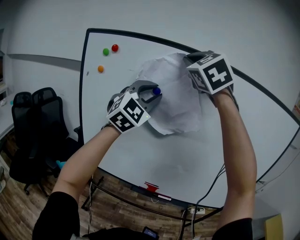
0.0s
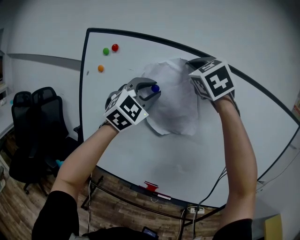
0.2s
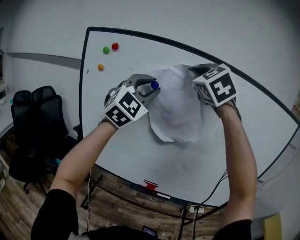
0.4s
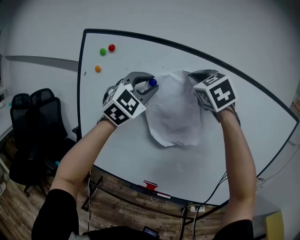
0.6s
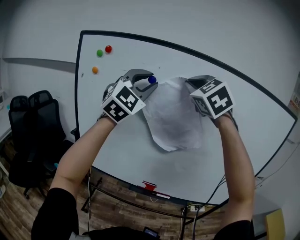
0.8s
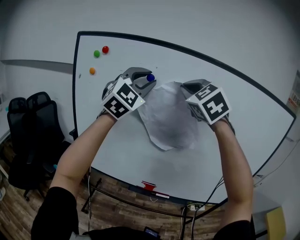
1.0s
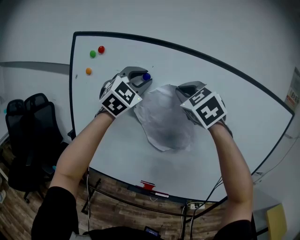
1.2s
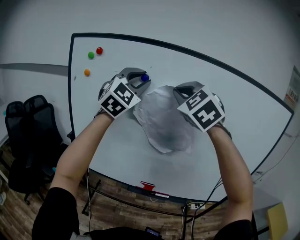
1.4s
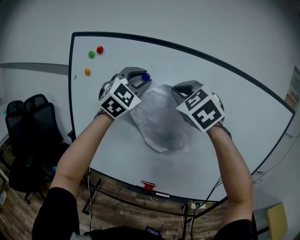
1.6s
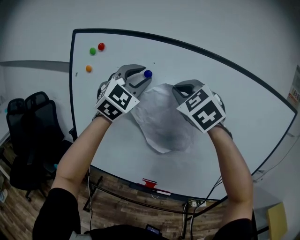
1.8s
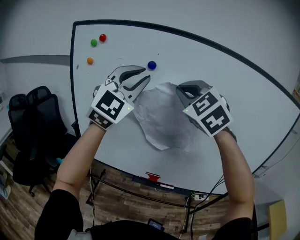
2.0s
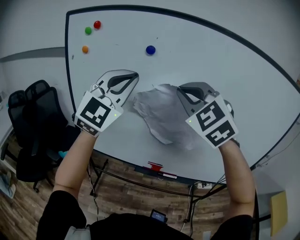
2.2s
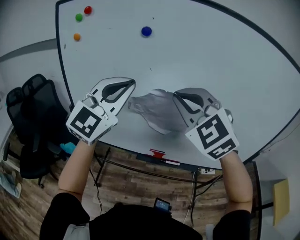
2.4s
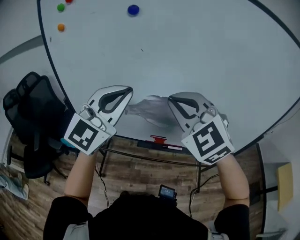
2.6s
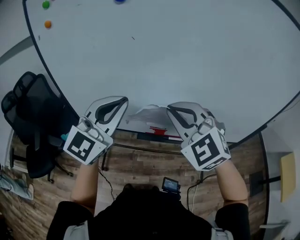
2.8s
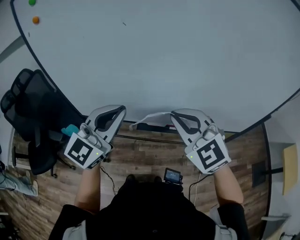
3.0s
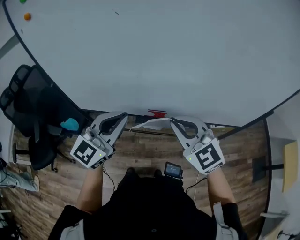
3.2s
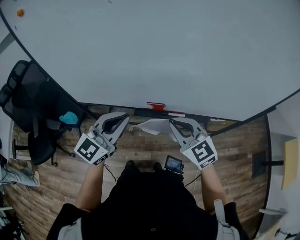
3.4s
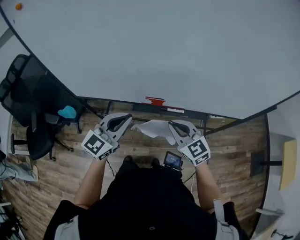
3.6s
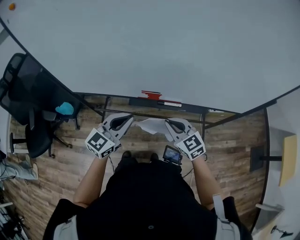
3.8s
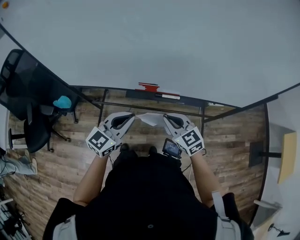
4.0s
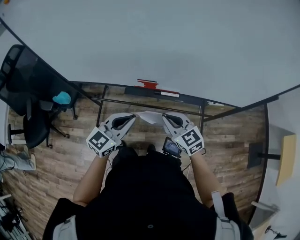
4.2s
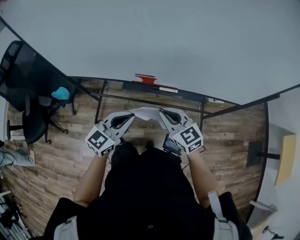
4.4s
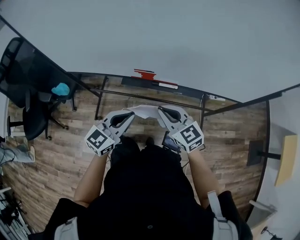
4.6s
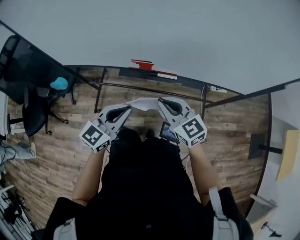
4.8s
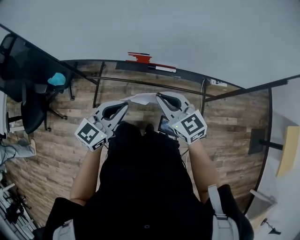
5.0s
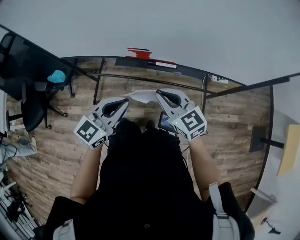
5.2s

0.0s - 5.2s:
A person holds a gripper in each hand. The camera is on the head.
0.0s - 1.8s: The right gripper moves downward, roughly 10 cm.
1.8s - 3.4s: The two grippers go about 40 cm downward. The right gripper rolls clockwise, seen from behind, by approximately 40 degrees; the left gripper rolls counterclockwise, seen from behind, by roughly 50 degrees, and closes up.
3.4s - 5.2s: The right gripper is displaced downward and to the right by roughly 15 cm; the left gripper goes some 20 cm downward, to the right and backward.

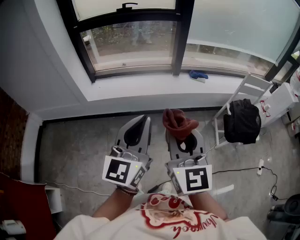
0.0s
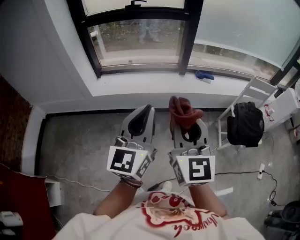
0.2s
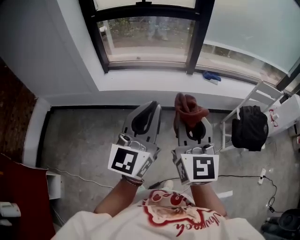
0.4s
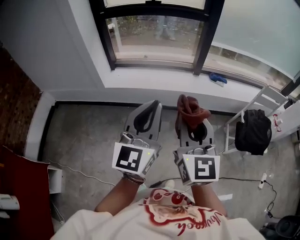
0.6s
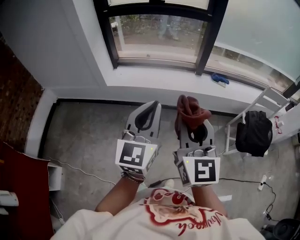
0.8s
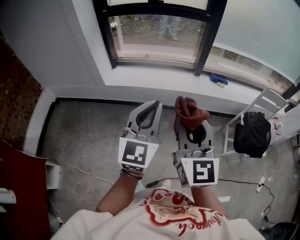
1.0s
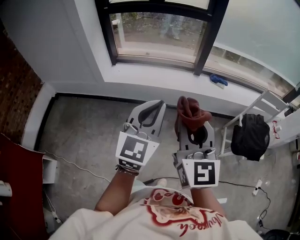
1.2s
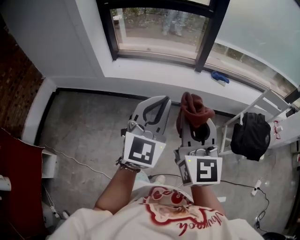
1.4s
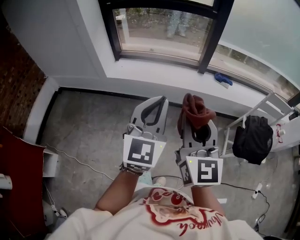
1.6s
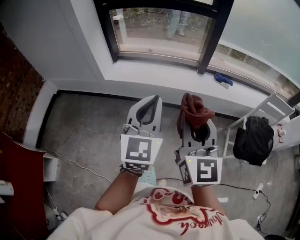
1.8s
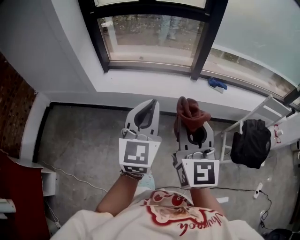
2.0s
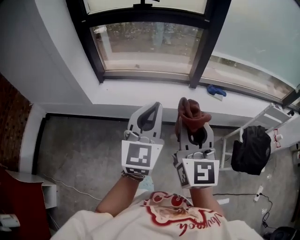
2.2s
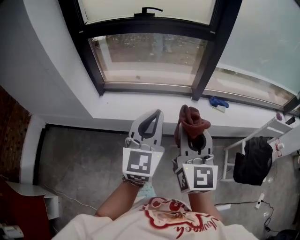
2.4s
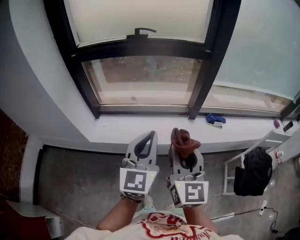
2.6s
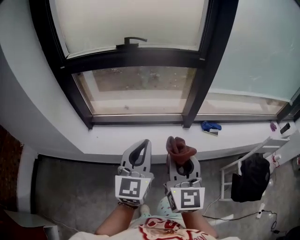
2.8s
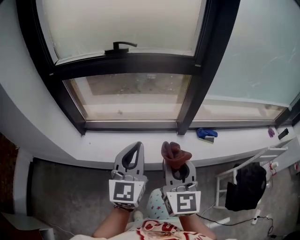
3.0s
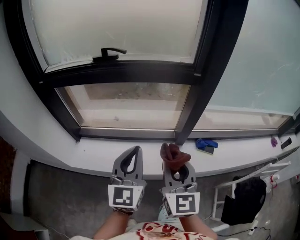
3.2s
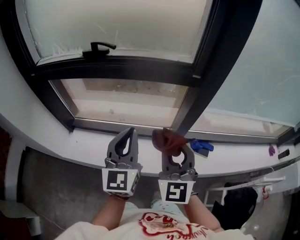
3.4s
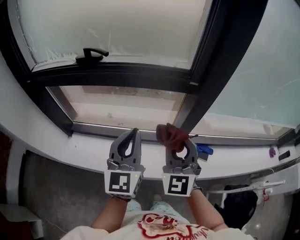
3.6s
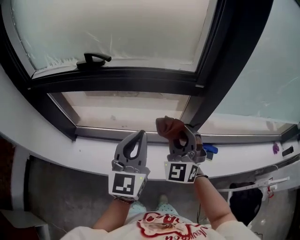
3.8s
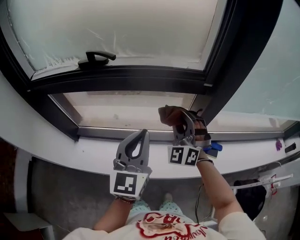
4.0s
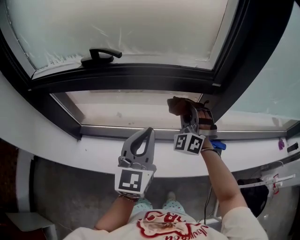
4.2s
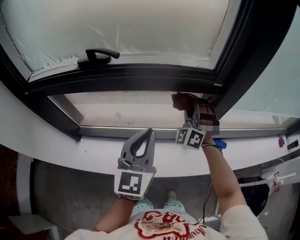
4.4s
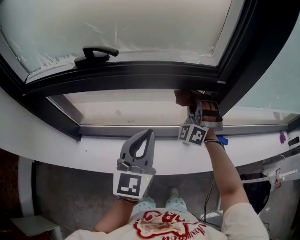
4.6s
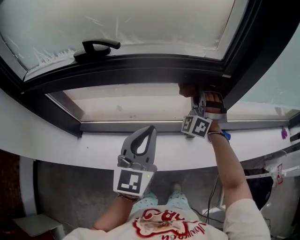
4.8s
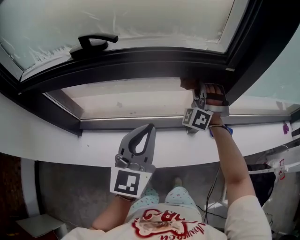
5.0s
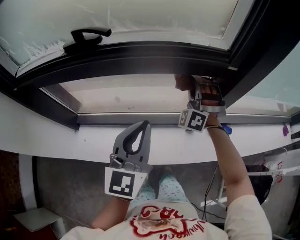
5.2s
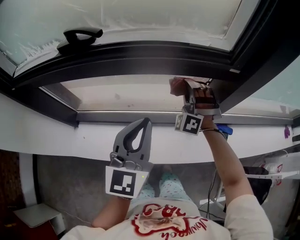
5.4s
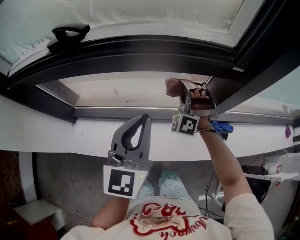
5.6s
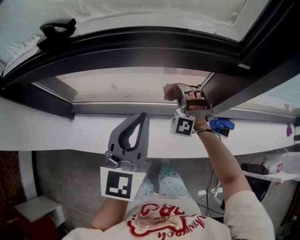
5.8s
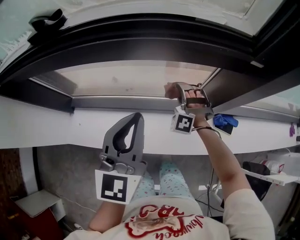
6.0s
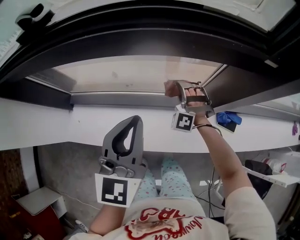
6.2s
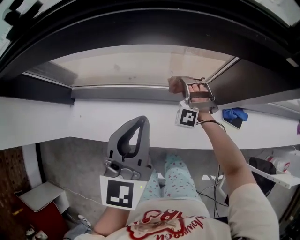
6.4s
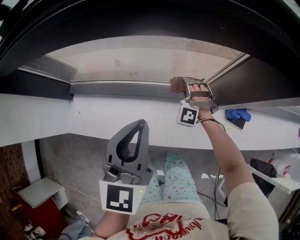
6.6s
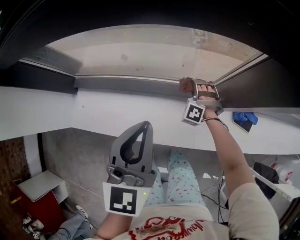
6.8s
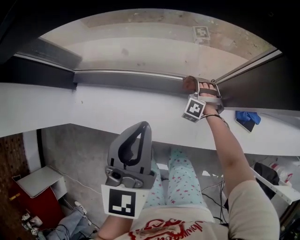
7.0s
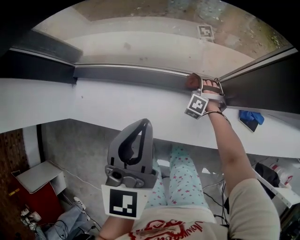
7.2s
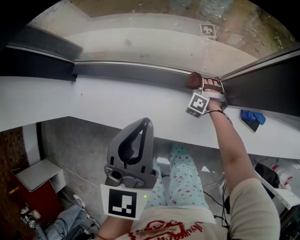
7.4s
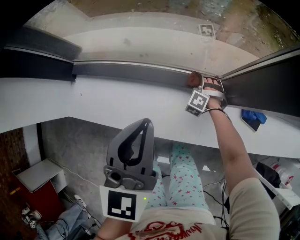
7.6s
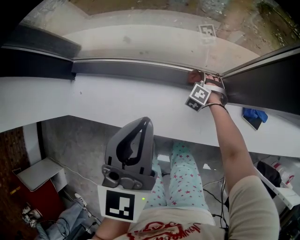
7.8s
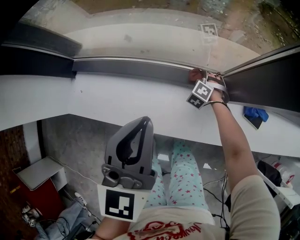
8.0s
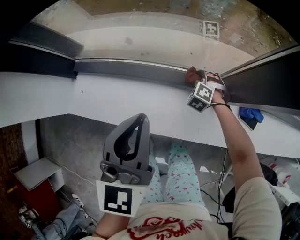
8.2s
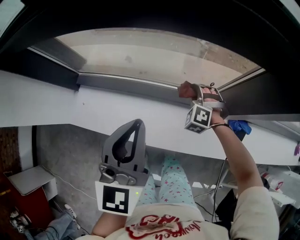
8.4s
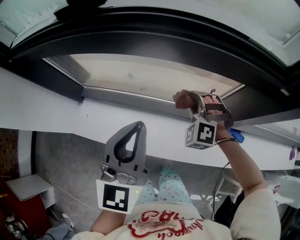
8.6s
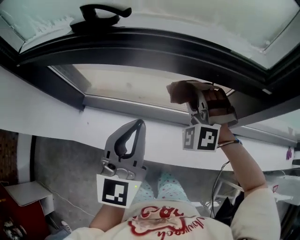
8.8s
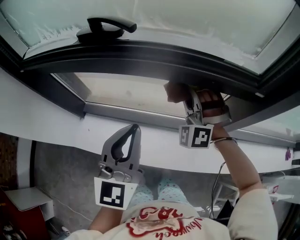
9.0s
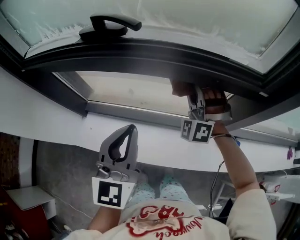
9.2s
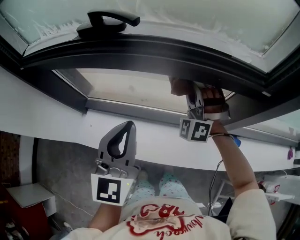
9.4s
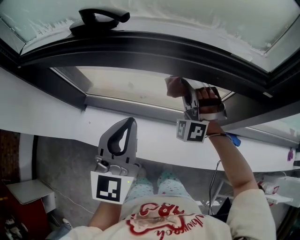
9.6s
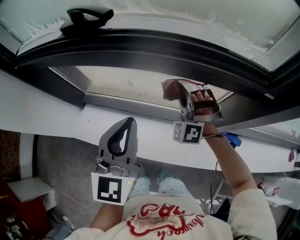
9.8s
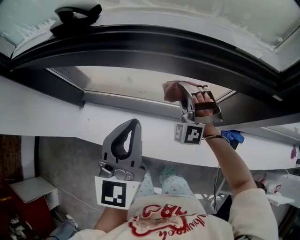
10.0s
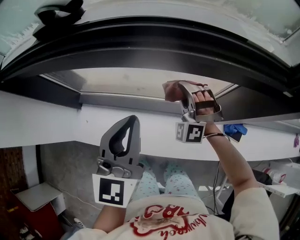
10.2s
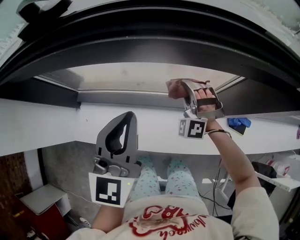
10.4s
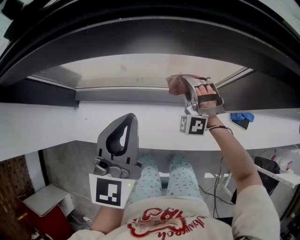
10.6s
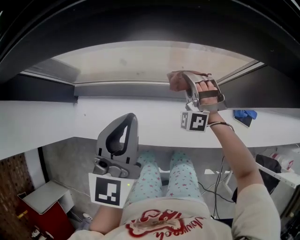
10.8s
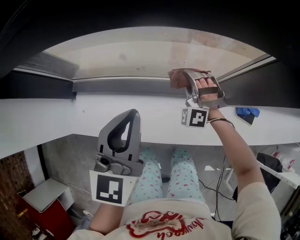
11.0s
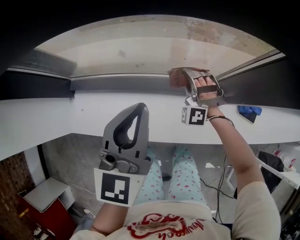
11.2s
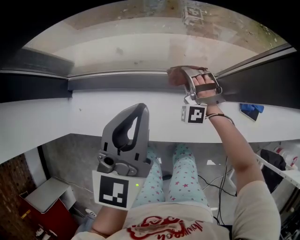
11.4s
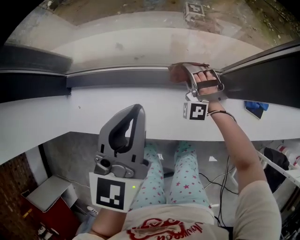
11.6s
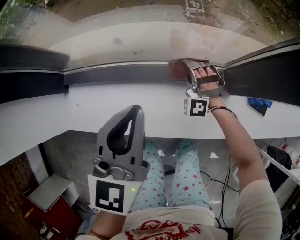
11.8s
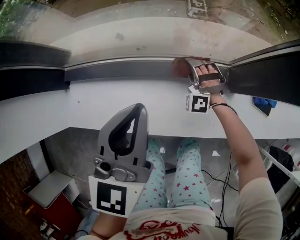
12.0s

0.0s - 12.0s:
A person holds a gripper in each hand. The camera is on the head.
0.0s - 1.6s: The left gripper shifts by some 5 cm, and rotates approximately 20 degrees.
1.6s - 3.0s: The two grippers travel together, forward, some 40 cm.
3.0s - 4.4s: The left gripper heads forward, covering roughly 25 cm. Meanwhile the right gripper shifts roughly 40 cm forward, and rotates around the line of its fingers by roughly 70 degrees, counterclockwise from behind.
4.4s - 6.0s: The left gripper heads downward, covering roughly 5 cm; the right gripper moves downward, some 25 cm, and rotates roughly 20 degrees.
6.0s - 7.6s: The left gripper moves downward, some 15 cm; the right gripper travels downward by roughly 30 cm, and turns by roughly 20 degrees.
7.6s - 9.0s: The left gripper travels upward by some 20 cm, while the right gripper travels upward by about 50 cm, and tips its fingers upward by approximately 40 degrees.
9.0s - 10.4s: The left gripper shifts roughly 10 cm downward and forward, while the right gripper is displaced downward by about 20 cm.
10.4s - 12.0s: The left gripper travels downward by some 15 cm, while the right gripper moves downward, roughly 25 cm.

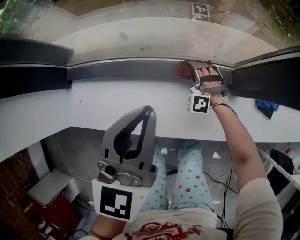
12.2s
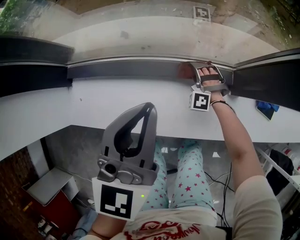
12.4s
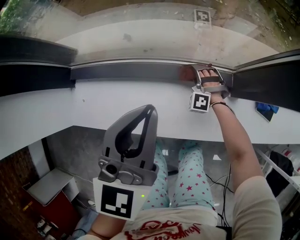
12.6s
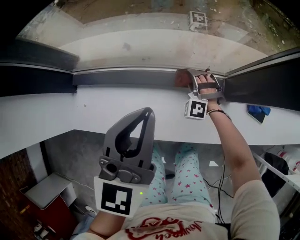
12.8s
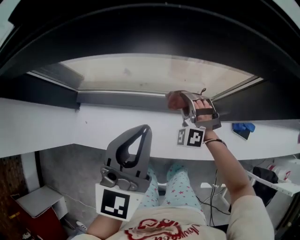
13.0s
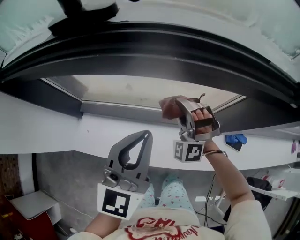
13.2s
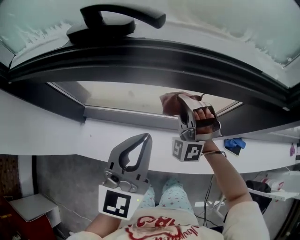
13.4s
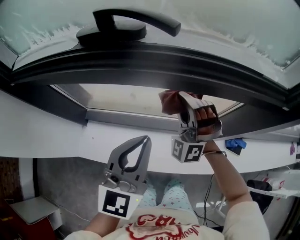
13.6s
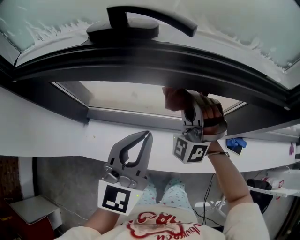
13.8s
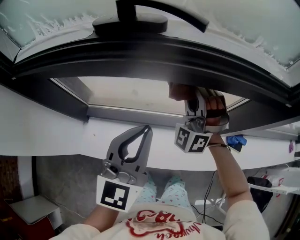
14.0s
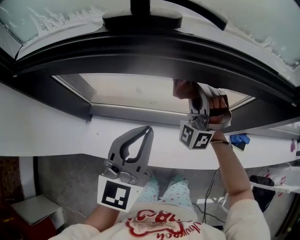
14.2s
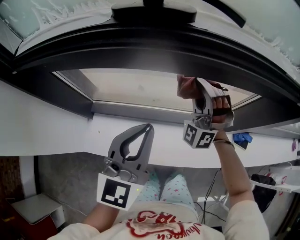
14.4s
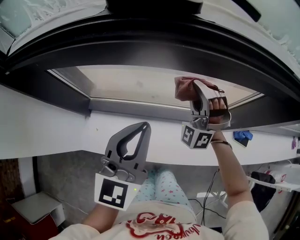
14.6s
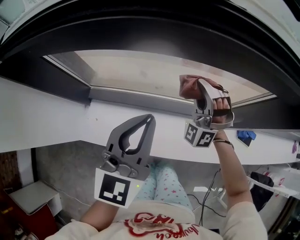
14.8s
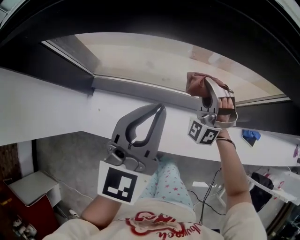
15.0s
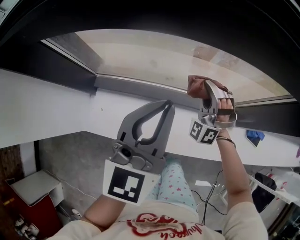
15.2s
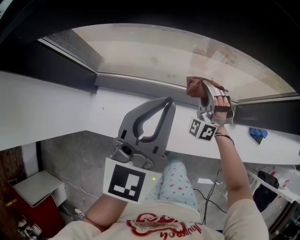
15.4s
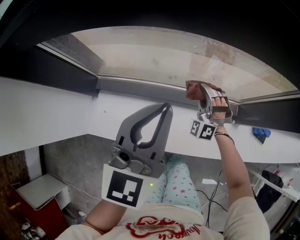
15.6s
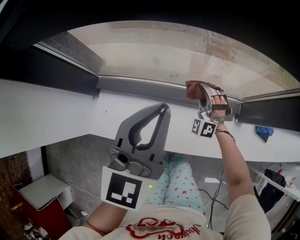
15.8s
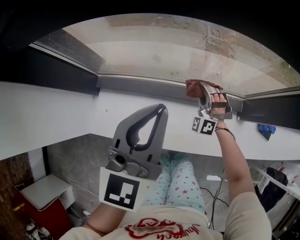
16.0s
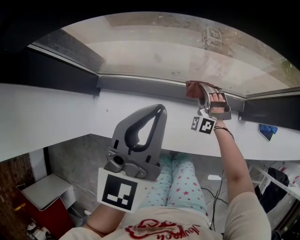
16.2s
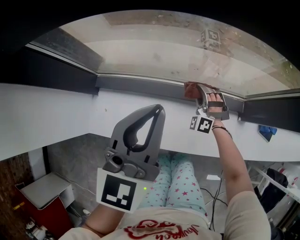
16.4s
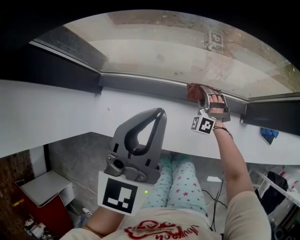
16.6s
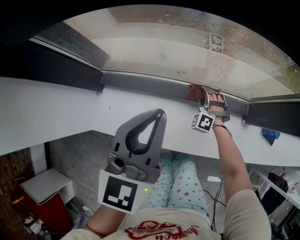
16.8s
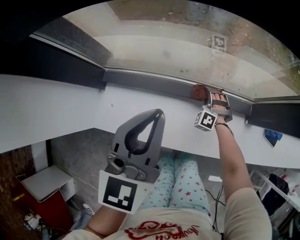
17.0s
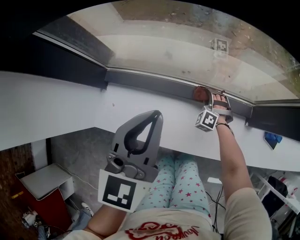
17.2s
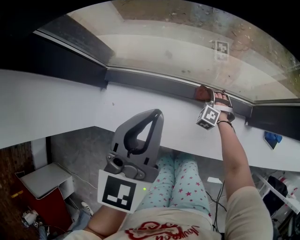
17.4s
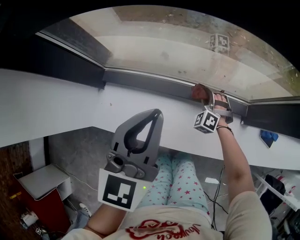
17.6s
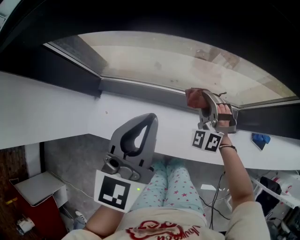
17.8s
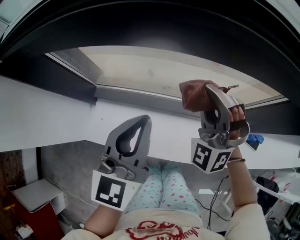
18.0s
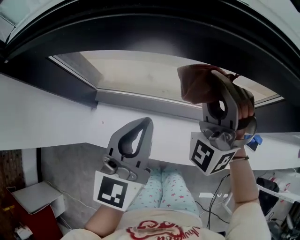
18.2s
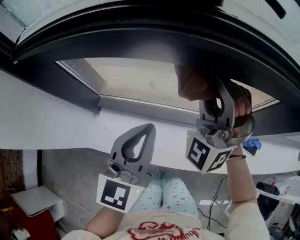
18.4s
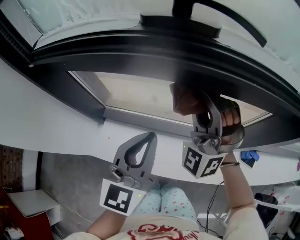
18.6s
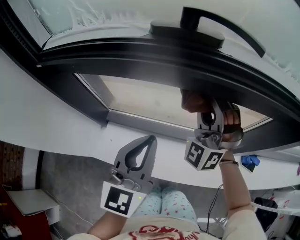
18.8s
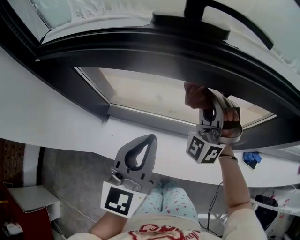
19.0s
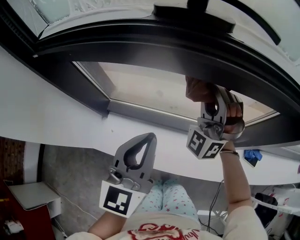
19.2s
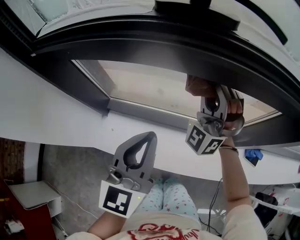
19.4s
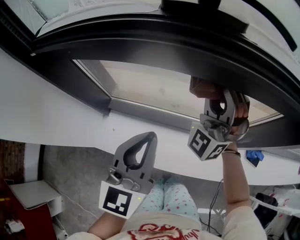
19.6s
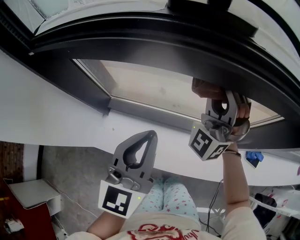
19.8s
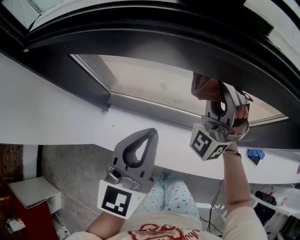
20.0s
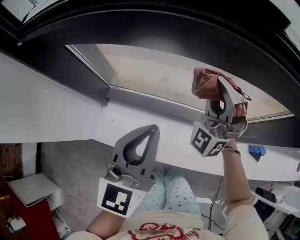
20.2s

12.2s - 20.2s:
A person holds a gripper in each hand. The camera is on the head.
12.2s - 13.8s: The left gripper travels upward by roughly 20 cm. Meanwhile the right gripper is displaced upward by some 50 cm, and points its fingers some 30 degrees further upward.
13.8s - 15.4s: The right gripper moves downward, about 25 cm. The left gripper goes roughly 10 cm downward and to the left.
15.4s - 17.0s: The left gripper changes place by approximately 5 cm, while the right gripper is displaced downward by approximately 20 cm, and swivels about 20 degrees.
17.0s - 18.6s: The left gripper moves upward, about 10 cm. The right gripper travels upward by approximately 50 cm, and tilts its fingers approximately 40 degrees upward.
18.6s - 20.2s: The right gripper goes about 10 cm downward; the left gripper moves approximately 5 cm.
